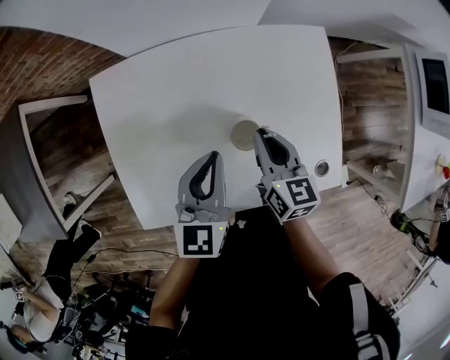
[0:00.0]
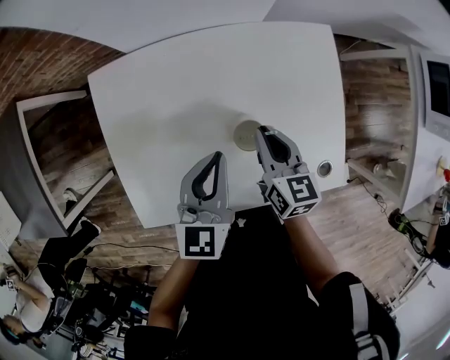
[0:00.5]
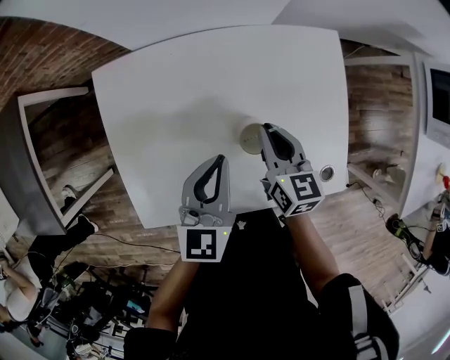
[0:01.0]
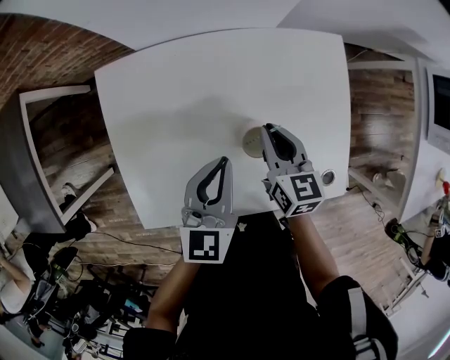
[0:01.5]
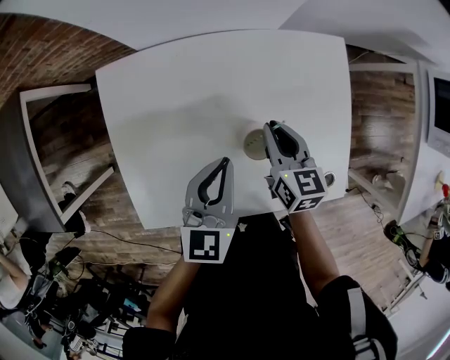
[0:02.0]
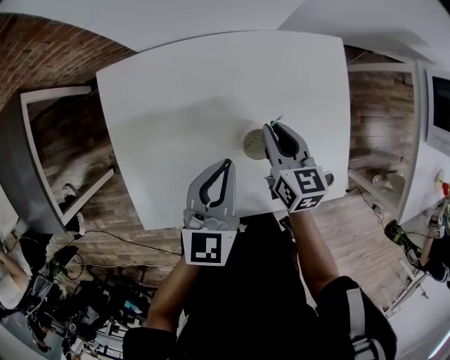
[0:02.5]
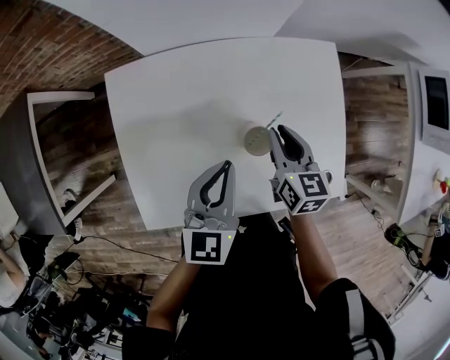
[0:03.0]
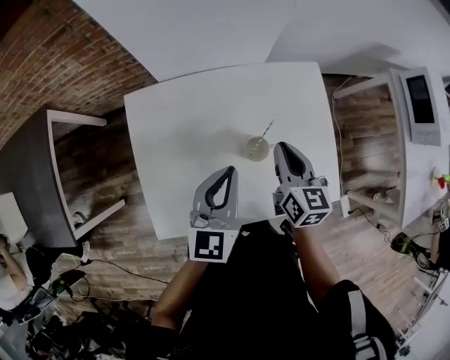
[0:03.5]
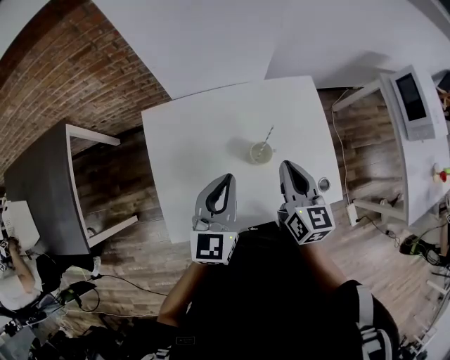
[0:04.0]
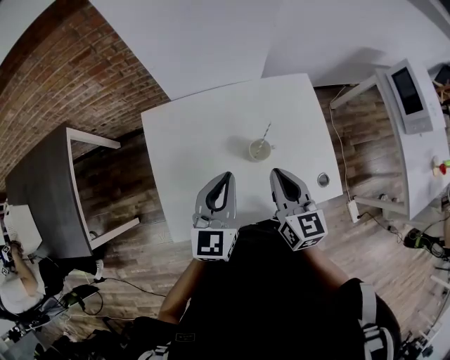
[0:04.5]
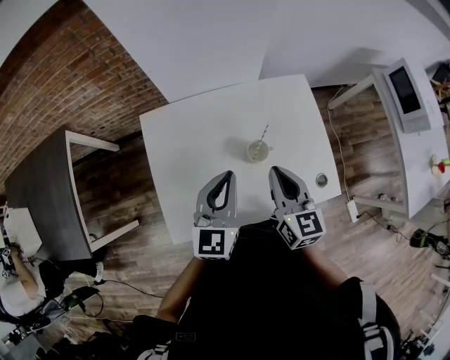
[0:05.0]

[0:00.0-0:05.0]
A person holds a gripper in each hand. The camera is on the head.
0.0 to 2.5 s: The grippers make only small movements.
2.5 to 5.0 s: The right gripper heads upward and backward, covering some 20 cm, and turns by approximately 20 degrees. The left gripper shifts some 15 cm upward and backward.

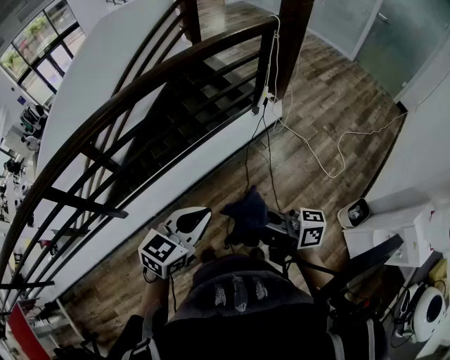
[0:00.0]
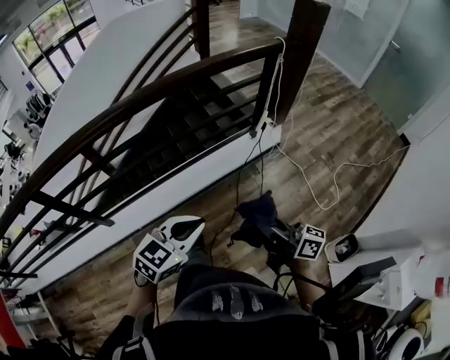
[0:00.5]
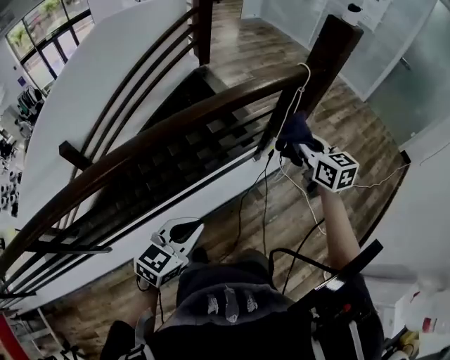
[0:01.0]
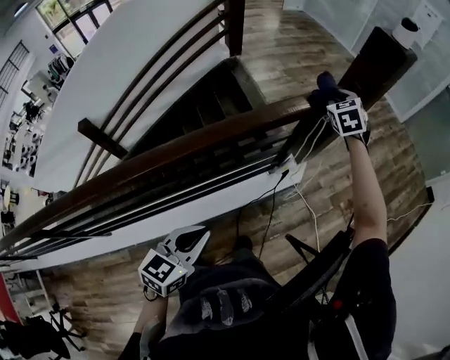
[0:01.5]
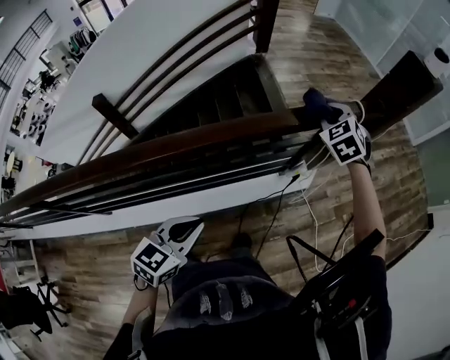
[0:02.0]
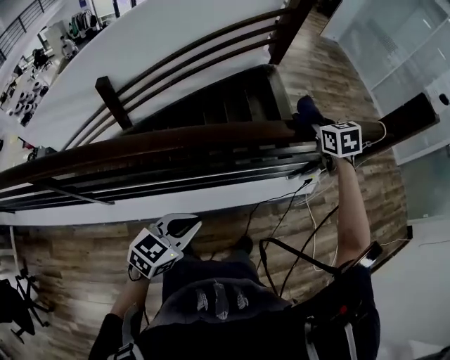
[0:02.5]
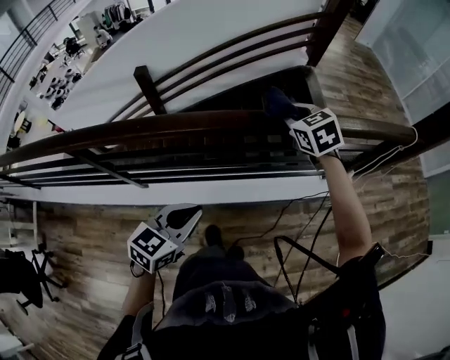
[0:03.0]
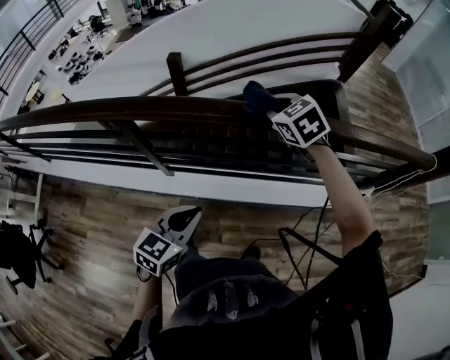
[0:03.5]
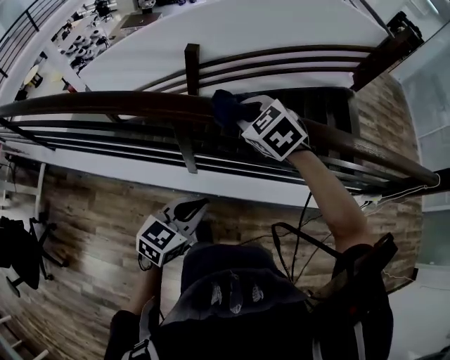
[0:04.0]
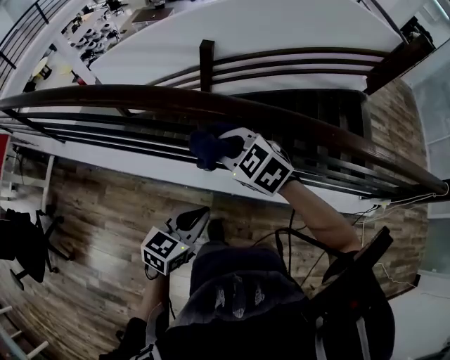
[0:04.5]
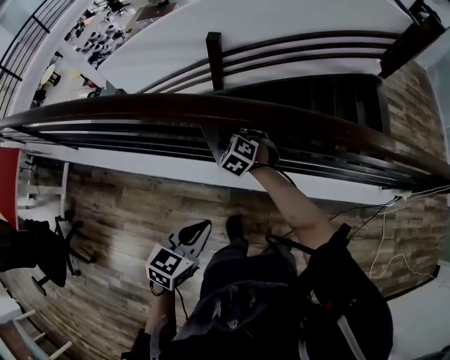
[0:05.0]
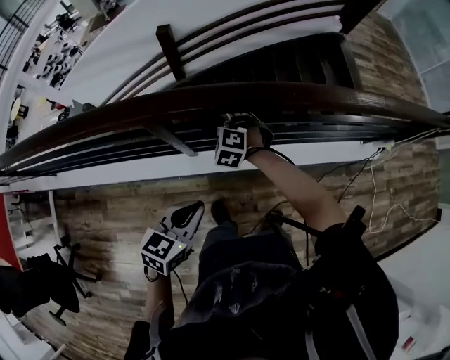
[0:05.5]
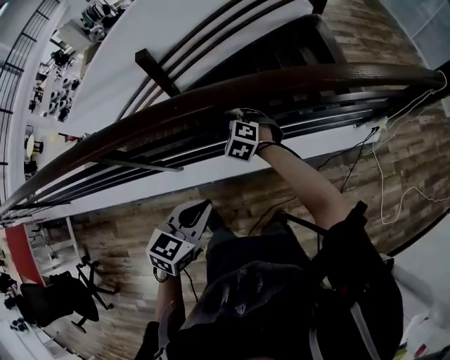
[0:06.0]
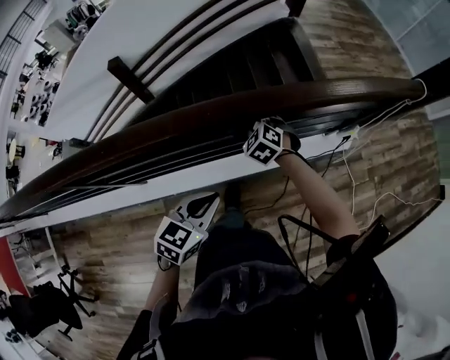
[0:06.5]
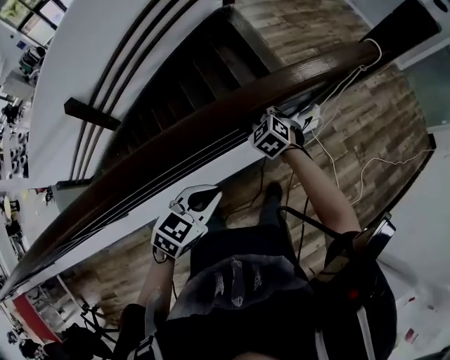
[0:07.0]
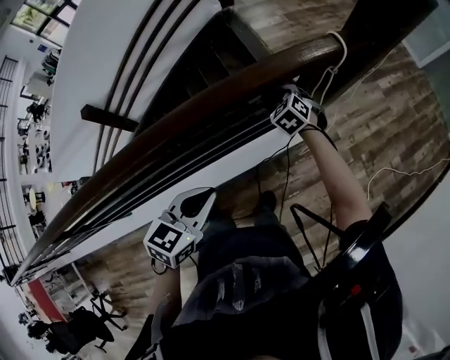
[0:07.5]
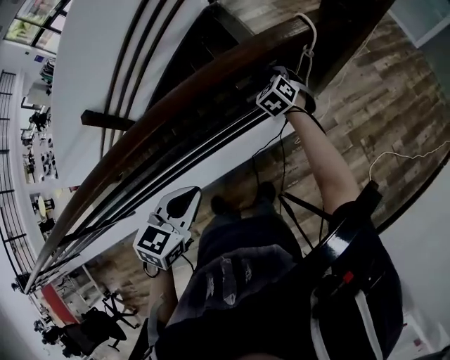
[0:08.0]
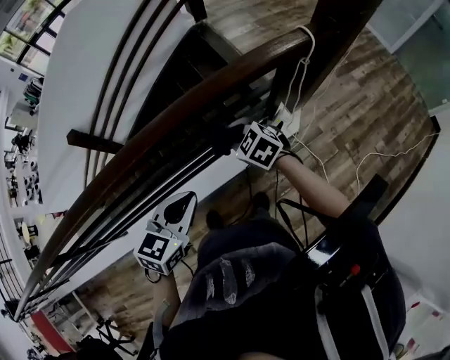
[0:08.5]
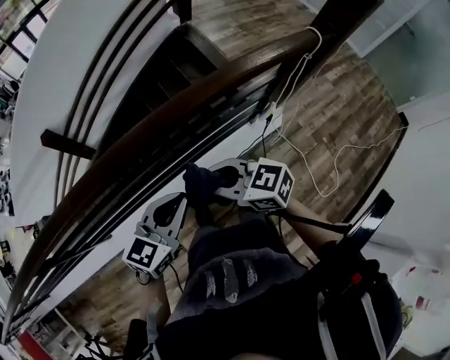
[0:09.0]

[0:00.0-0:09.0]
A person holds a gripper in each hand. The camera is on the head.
0.0 to 2.0 s: The pair of grippers is taken forward, approximately 60 cm. The right gripper tilts its fingers some 50 degrees downward. Meanwhile the left gripper changes its angle by some 20 degrees.
2.0 to 4.5 s: The pair of grippers is taken about 1 m. The right gripper rotates some 60 degrees, while the left gripper turns by some 30 degrees.
4.5 to 7.0 s: Both grippers are carried about 80 cm. The right gripper rotates about 50 degrees, while the left gripper swivels approximately 50 degrees.
7.0 to 9.0 s: The right gripper changes place by approximately 30 cm, and turns by some 60 degrees; the left gripper shifts about 10 cm upward.

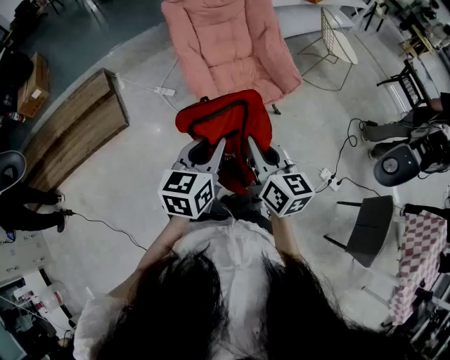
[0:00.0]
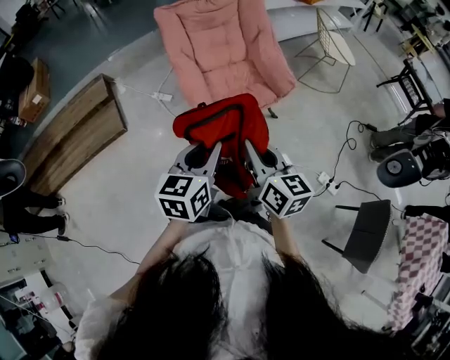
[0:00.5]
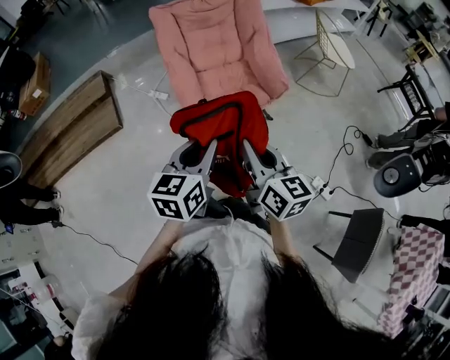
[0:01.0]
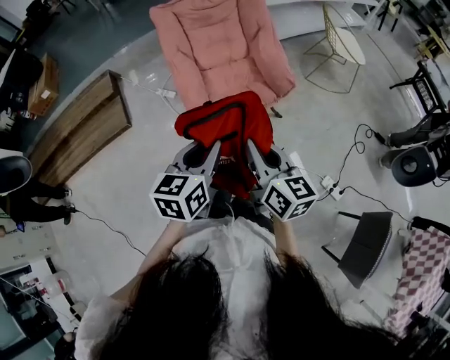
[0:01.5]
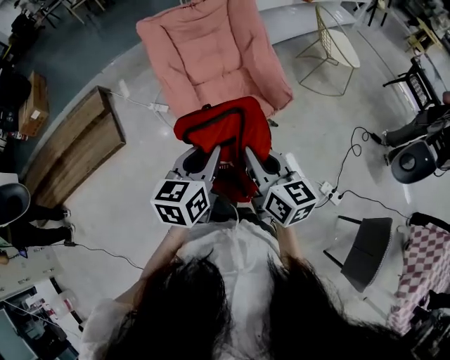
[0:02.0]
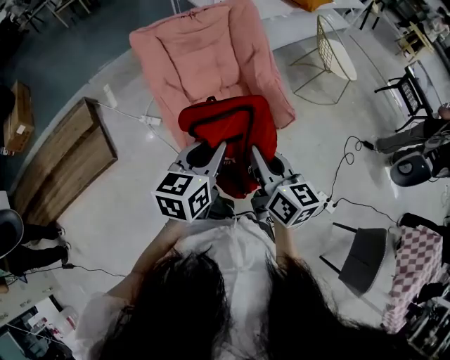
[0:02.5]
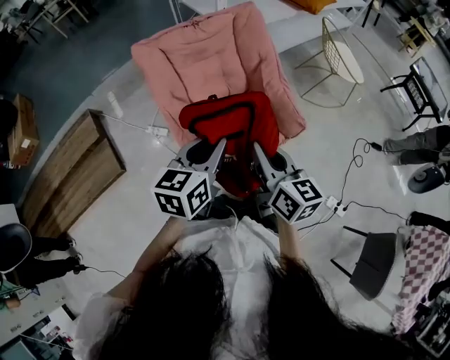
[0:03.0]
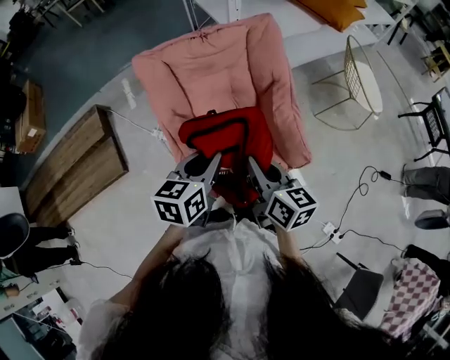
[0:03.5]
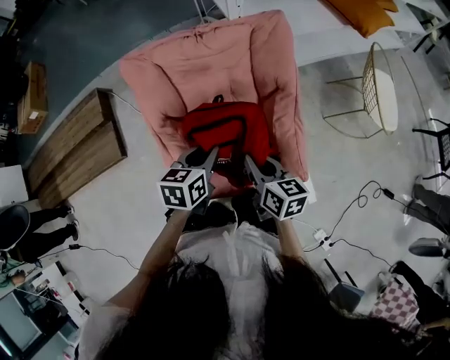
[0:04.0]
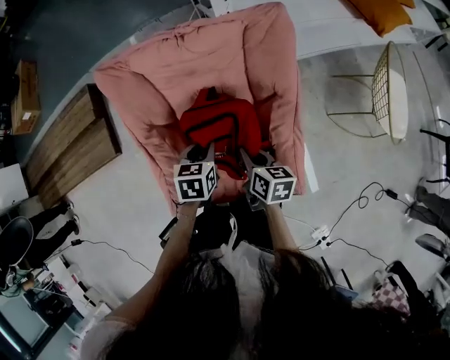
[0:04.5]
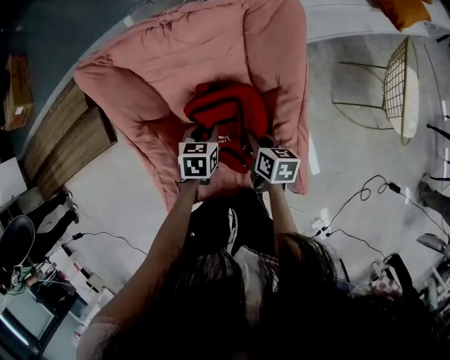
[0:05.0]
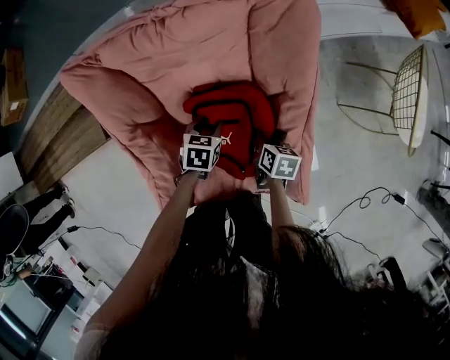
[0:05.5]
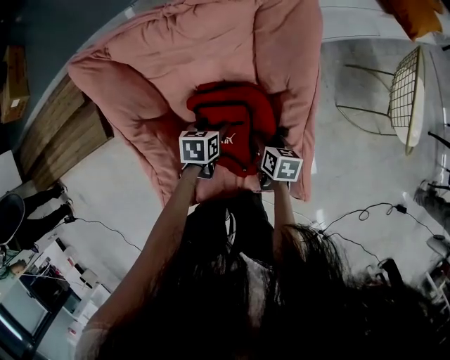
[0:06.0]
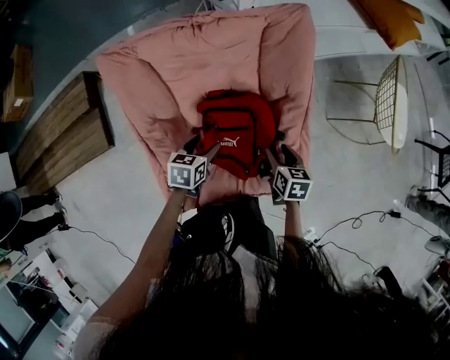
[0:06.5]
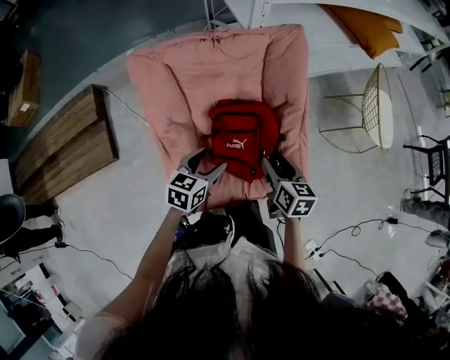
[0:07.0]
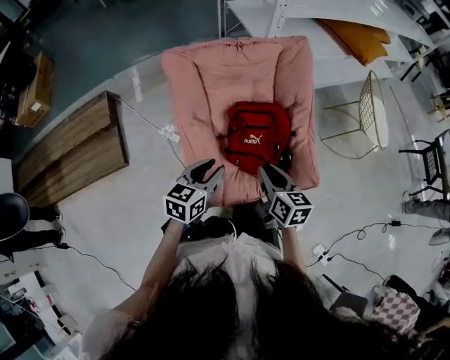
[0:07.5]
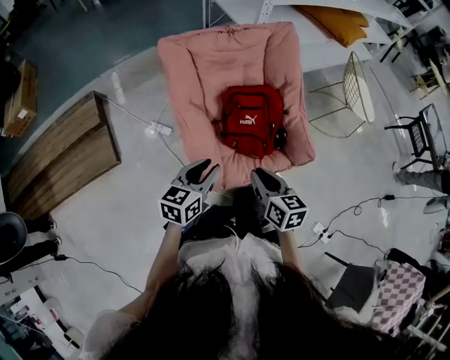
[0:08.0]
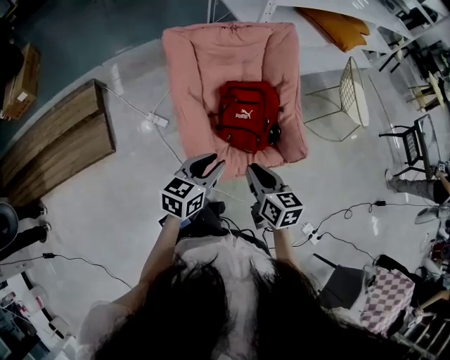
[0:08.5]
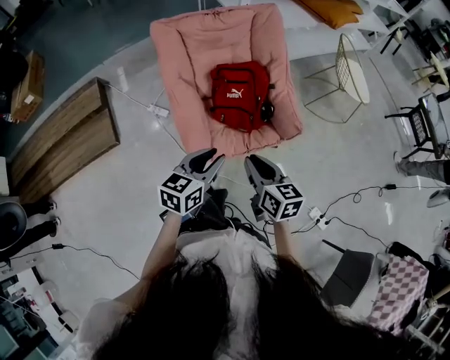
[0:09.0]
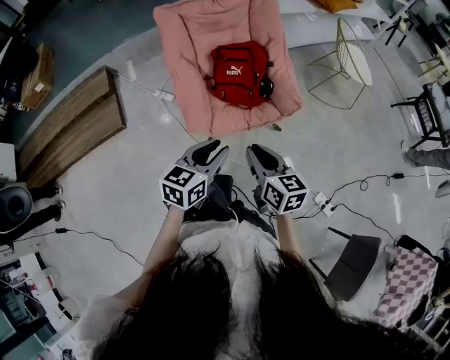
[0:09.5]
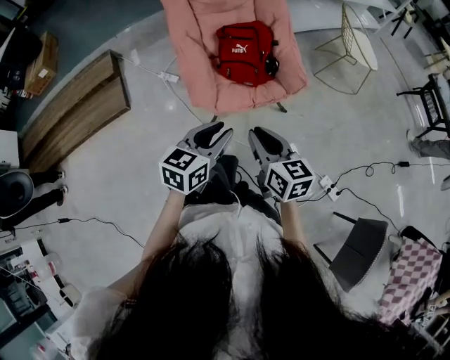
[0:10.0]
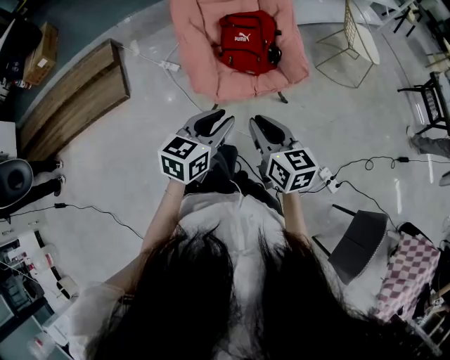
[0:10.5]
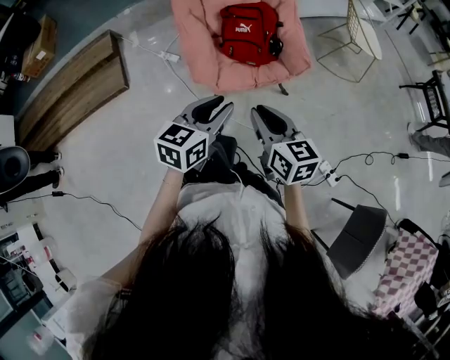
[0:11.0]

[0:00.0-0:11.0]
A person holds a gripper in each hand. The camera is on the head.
0.0 to 2.0 s: The two grippers go roughly 15 cm forward and to the right.
2.0 to 3.5 s: The two grippers go approximately 30 cm forward.
3.5 to 5.5 s: Both grippers move downward and forward, approximately 40 cm. The right gripper points its fingers roughly 40 degrees further downward, while the left gripper tips its fingers downward by roughly 30 degrees.
5.5 to 7.5 s: Both grippers move upward, backward and to the left, about 35 cm. The right gripper changes its angle by about 30 degrees, and opens, then closes once more, while the left gripper points its fingers roughly 30 degrees further upward, and opens and closes again.
7.5 to 9.0 s: The right gripper moves backward, roughly 20 cm. Meanwhile the left gripper travels backward and to the right by some 20 cm.
9.0 to 11.0 s: Both grippers travel together backward, roughly 15 cm.

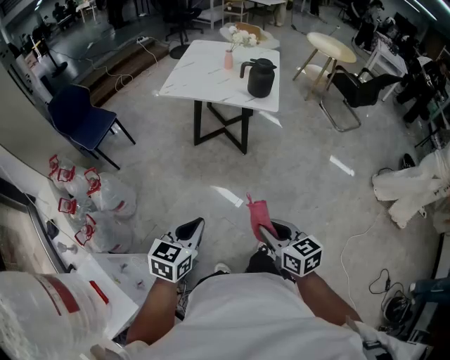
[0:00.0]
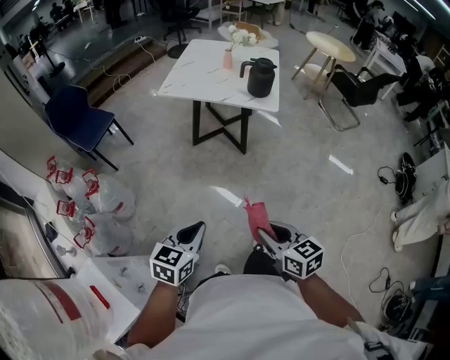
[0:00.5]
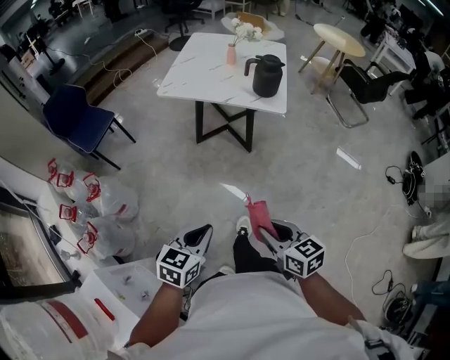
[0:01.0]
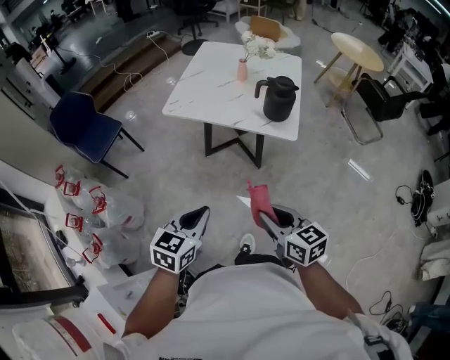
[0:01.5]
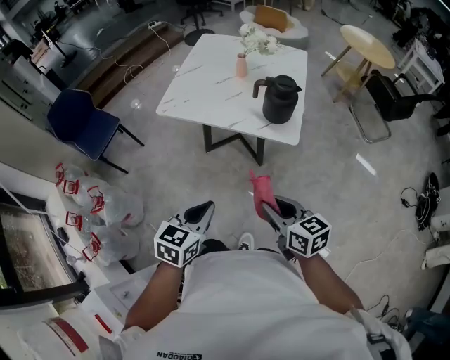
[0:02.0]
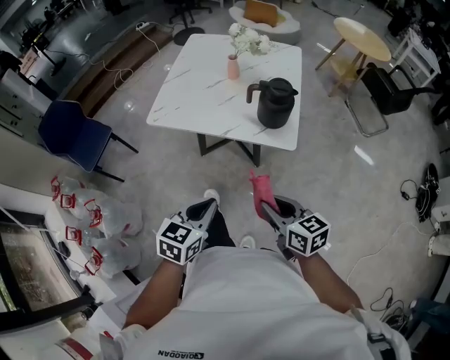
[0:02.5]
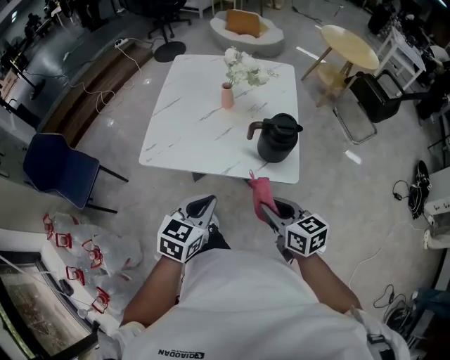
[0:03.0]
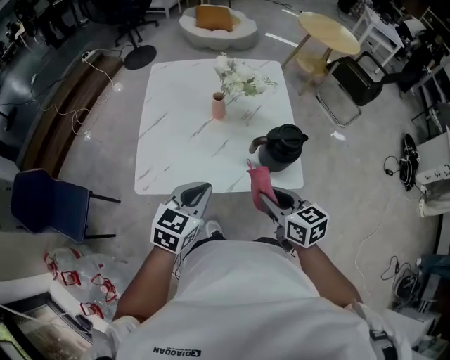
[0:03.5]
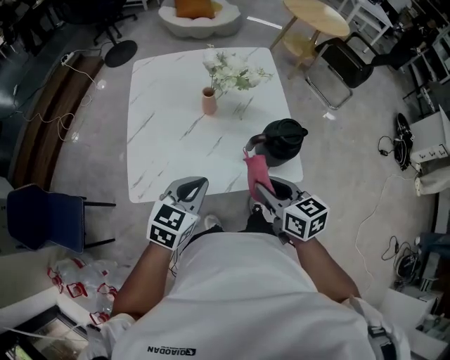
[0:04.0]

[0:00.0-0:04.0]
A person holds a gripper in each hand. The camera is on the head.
0.0 to 2.0 s: The two grippers go approximately 35 cm forward.
2.0 to 4.0 s: The right gripper changes place by approximately 35 cm, and turns by approximately 20 degrees. Meanwhile the left gripper ends up about 40 cm from where it was, and changes its angle by approximately 30 degrees.
